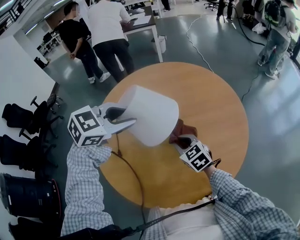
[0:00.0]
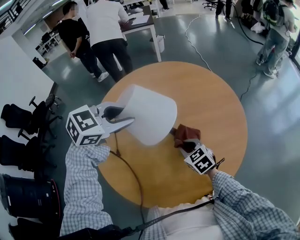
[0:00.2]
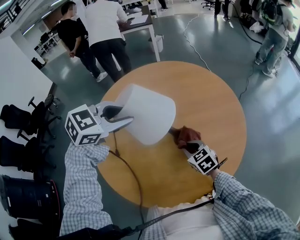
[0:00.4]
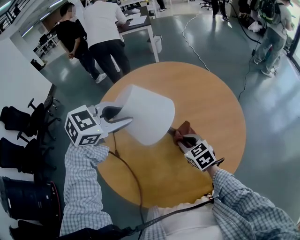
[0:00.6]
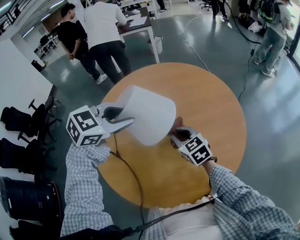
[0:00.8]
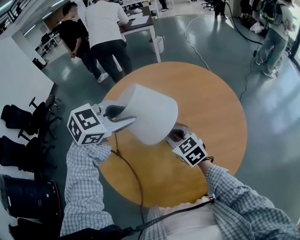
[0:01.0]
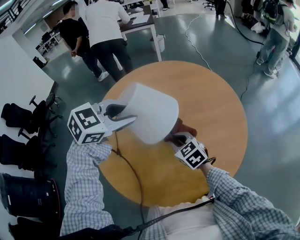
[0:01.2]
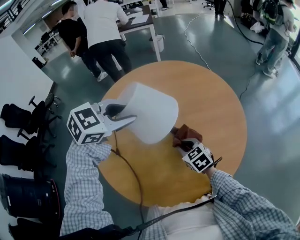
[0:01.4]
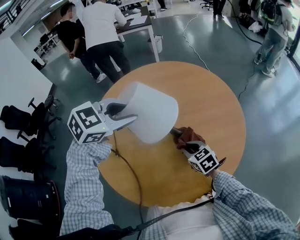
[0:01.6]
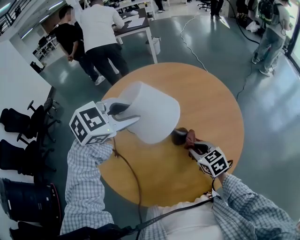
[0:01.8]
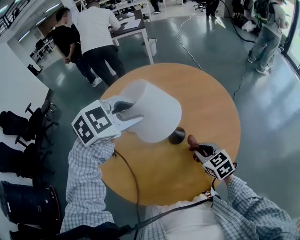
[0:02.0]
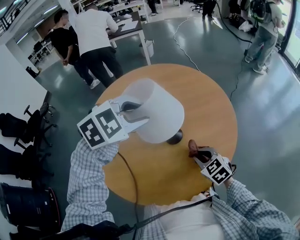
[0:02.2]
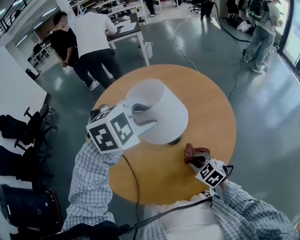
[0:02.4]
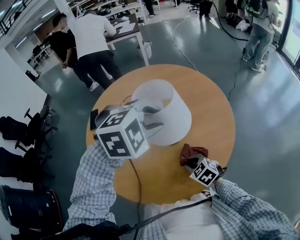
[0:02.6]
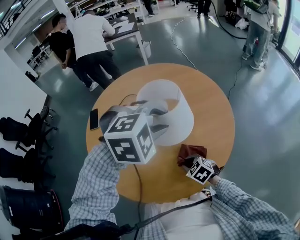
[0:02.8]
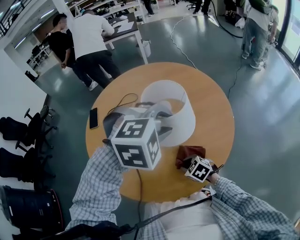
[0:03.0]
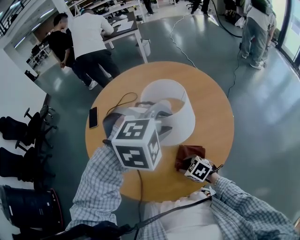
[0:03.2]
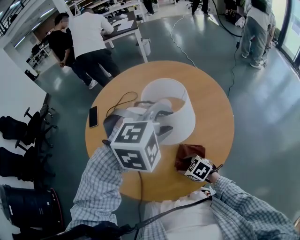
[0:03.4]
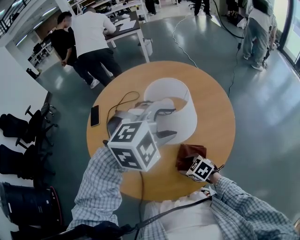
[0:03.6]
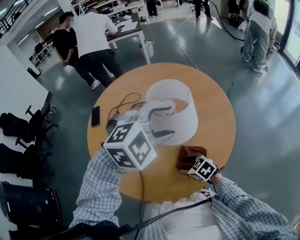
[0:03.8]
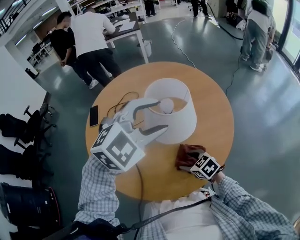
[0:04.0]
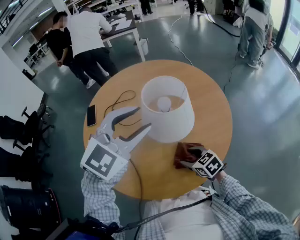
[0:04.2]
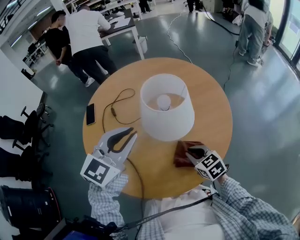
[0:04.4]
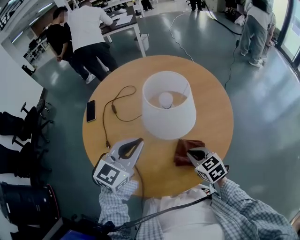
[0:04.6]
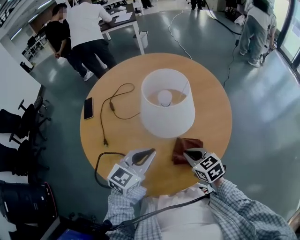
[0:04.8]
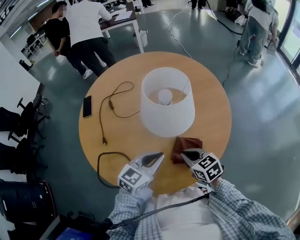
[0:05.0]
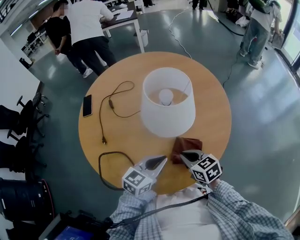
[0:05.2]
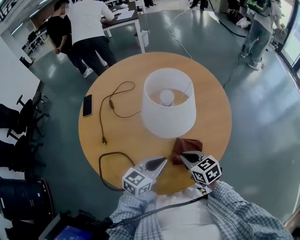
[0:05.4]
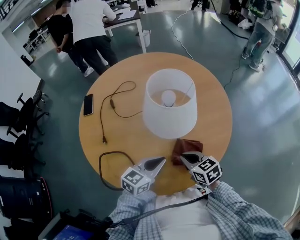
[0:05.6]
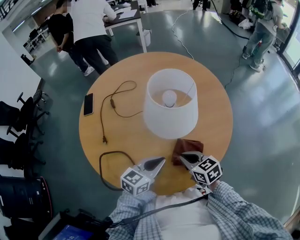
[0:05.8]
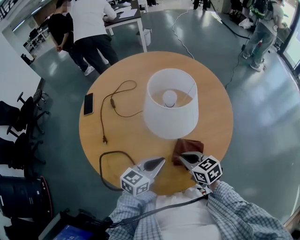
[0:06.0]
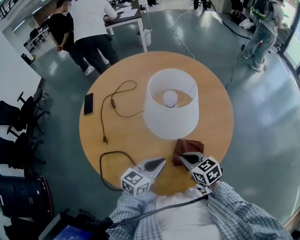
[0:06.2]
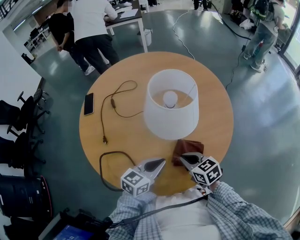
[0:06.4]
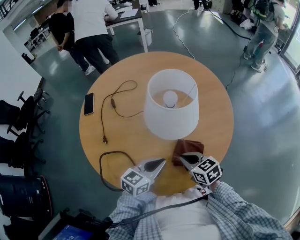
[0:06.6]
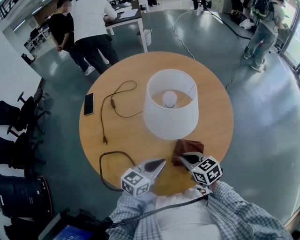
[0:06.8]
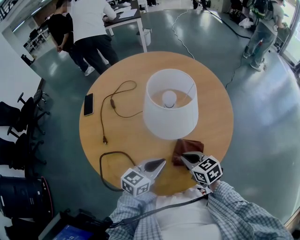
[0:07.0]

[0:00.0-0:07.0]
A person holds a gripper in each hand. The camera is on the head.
0:00.0 to 0:01.4: The right gripper goes up and down, about 10 cm each way, reversing 2 times.
0:01.4 to 0:02.8: The left gripper is displaced to the right by some 15 cm, and rotates roughly 40 degrees. Meanwhile the right gripper heads backward and to the right, covering about 15 cm.
0:02.8 to 0:04.2: The left gripper shifts approximately 10 cm upward and to the left, and points its fingers roughly 40 degrees further upward, while the right gripper opens up.
0:04.2 to 0:05.6: The left gripper moves downward, some 25 cm, rolls counterclockwise, seen from behind, by approximately 50 degrees, and closes its fingers. The right gripper closes its fingers.
0:05.6 to 0:07.0: Neither gripper changes place.

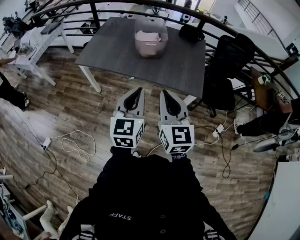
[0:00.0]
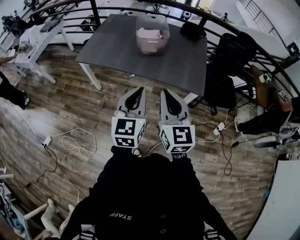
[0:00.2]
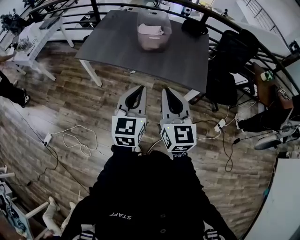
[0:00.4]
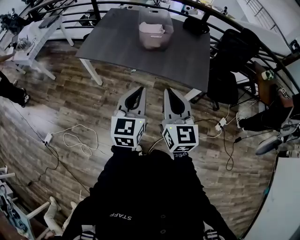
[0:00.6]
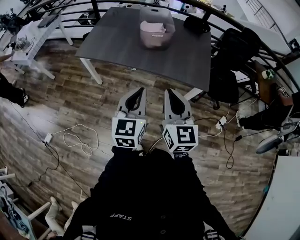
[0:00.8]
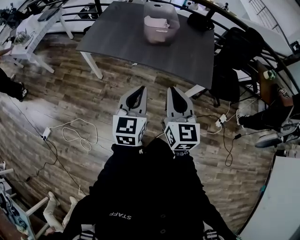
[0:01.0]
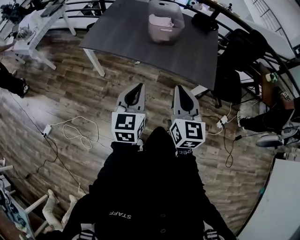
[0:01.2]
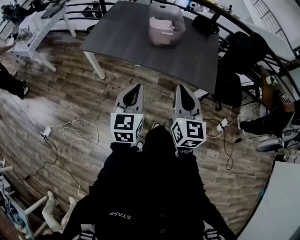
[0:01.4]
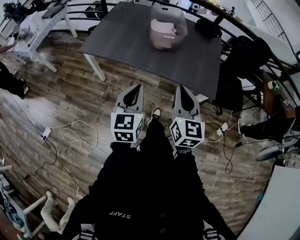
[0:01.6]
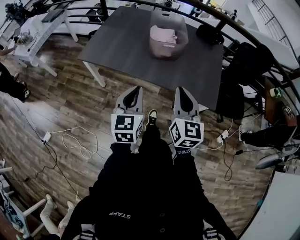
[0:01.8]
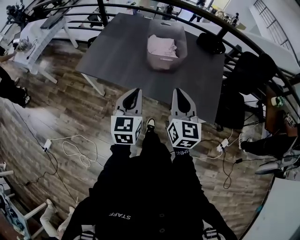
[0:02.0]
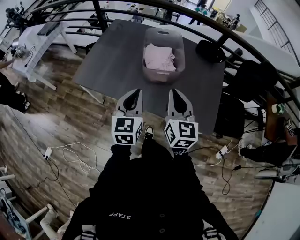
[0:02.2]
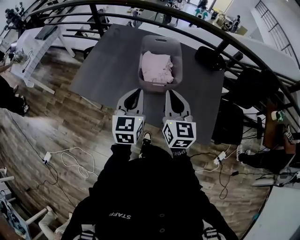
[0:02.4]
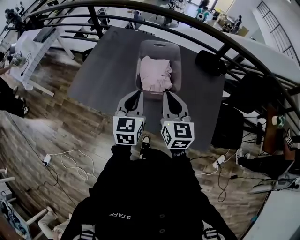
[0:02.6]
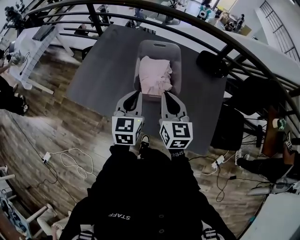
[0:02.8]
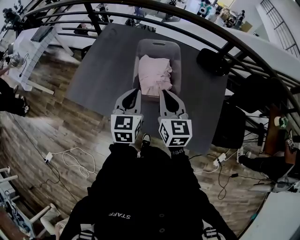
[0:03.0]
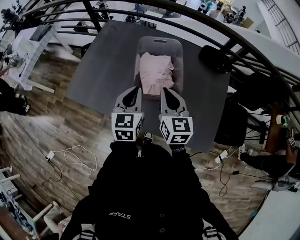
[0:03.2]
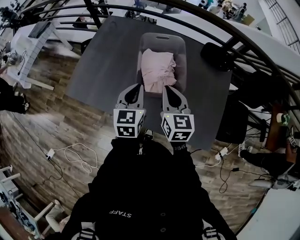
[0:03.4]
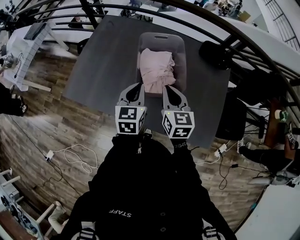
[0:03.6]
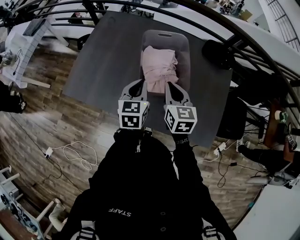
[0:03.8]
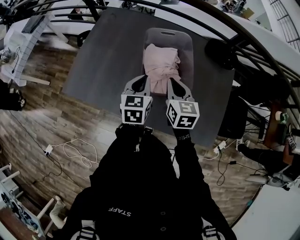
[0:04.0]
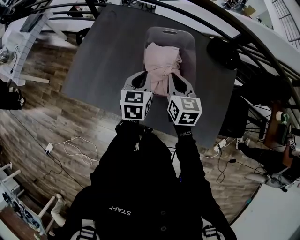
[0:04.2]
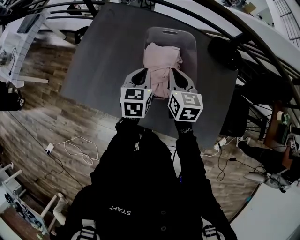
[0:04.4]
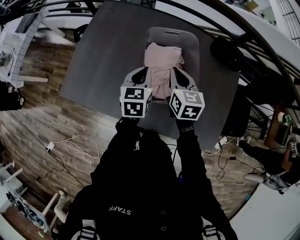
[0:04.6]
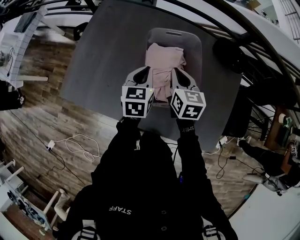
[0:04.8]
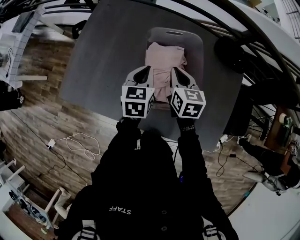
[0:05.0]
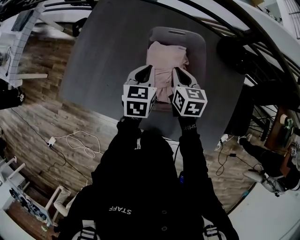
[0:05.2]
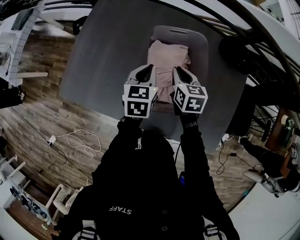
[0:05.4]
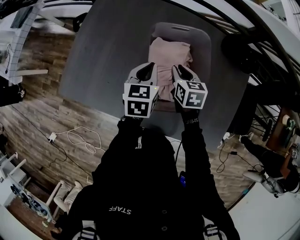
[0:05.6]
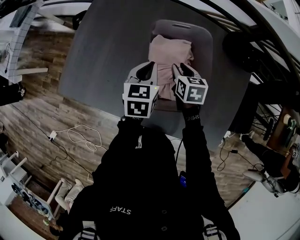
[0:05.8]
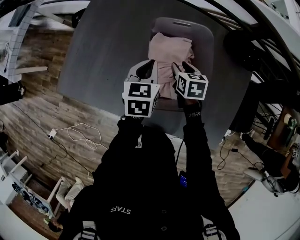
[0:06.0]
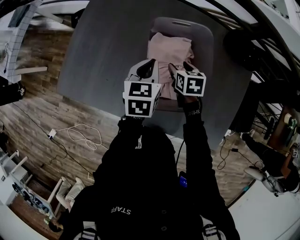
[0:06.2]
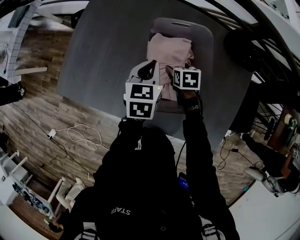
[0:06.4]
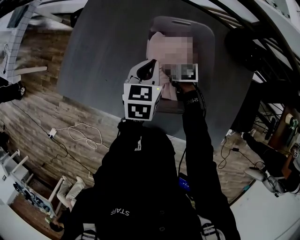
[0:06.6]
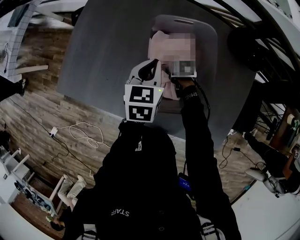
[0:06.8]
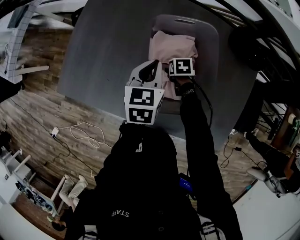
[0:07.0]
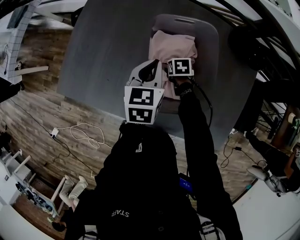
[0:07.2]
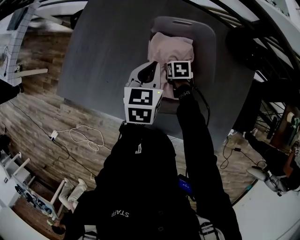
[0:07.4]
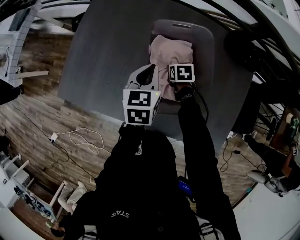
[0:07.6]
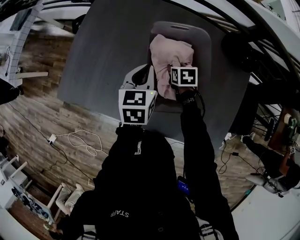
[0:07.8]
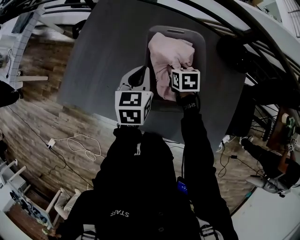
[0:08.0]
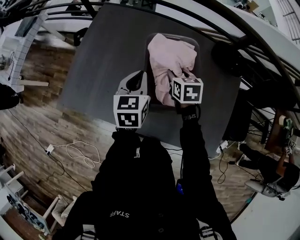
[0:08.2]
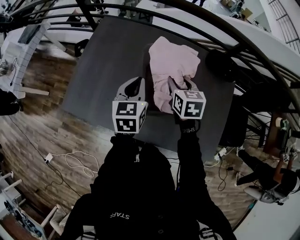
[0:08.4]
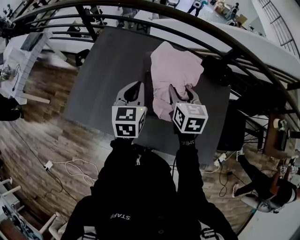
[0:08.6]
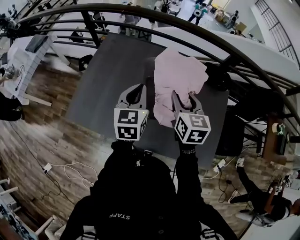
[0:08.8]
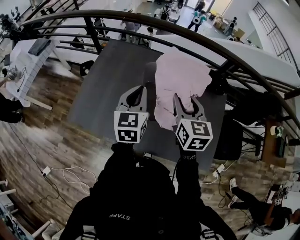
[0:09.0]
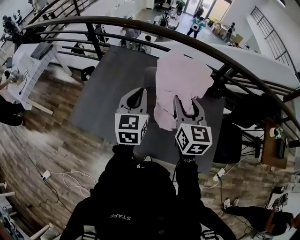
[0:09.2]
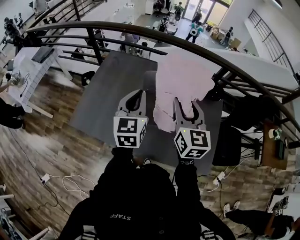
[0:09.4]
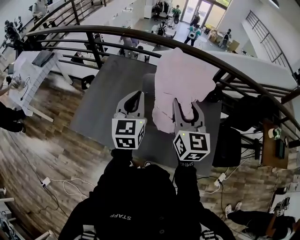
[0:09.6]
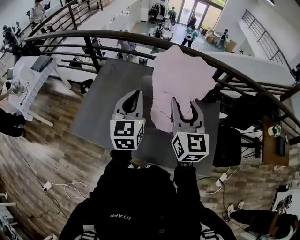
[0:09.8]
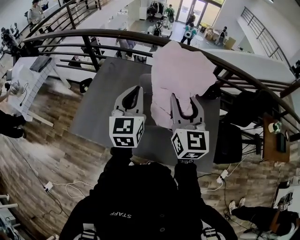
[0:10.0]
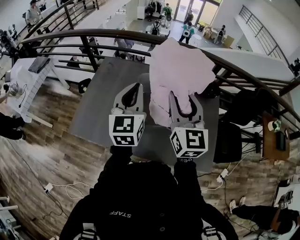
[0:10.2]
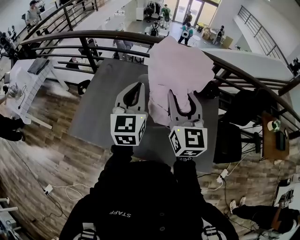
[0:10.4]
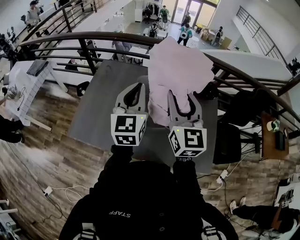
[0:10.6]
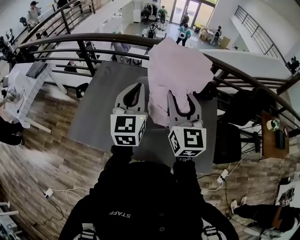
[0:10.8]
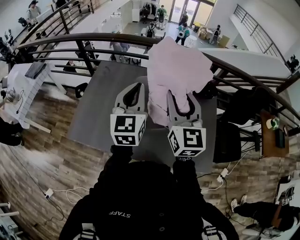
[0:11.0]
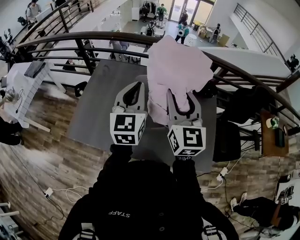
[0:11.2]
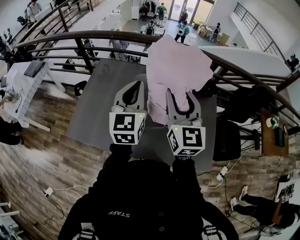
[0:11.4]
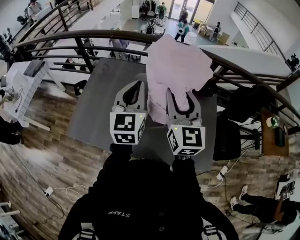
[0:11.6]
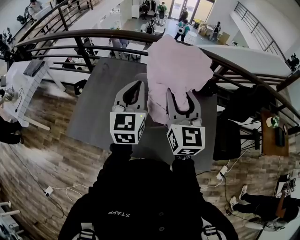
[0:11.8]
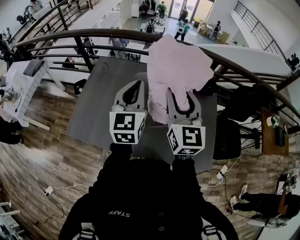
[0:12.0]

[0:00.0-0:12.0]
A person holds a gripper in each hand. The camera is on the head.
0:00.0 to 0:01.6: The right gripper travels forward and downward by approximately 10 cm, while the left gripper moves to the left, downward and forward, some 15 cm.
0:01.6 to 0:03.0: The two grippers travel together, forward, about 40 cm.
0:03.0 to 0:04.4: The grippers both shift forward and downward by roughly 15 cm.
0:04.4 to 0:06.0: The right gripper goes roughly 20 cm downward and forward, swivels some 30 degrees, and opens up, while the left gripper goes approximately 10 cm forward and downward.
0:06.0 to 0:07.6: The right gripper shifts some 10 cm downward, and opens, then closes again.
0:07.6 to 0:09.0: The right gripper goes about 40 cm upward, and tips its fingers upward by roughly 50 degrees, while the left gripper goes some 20 cm upward, and rotates roughly 20 degrees.
0:09.0 to 0:10.4: Both grippers move upward, about 10 cm. The right gripper swivels approximately 20 degrees.
0:10.4 to 0:12.0: The grippers move only a little.

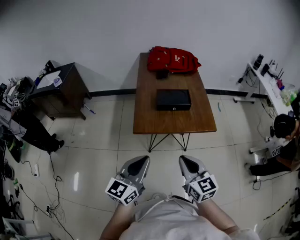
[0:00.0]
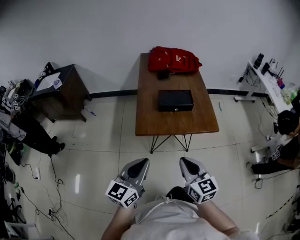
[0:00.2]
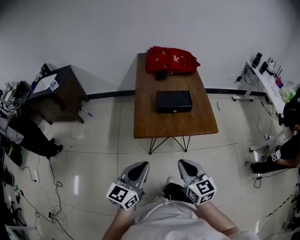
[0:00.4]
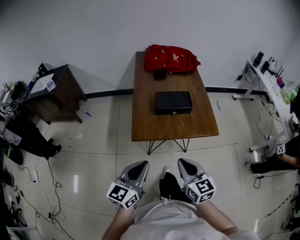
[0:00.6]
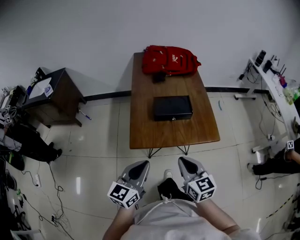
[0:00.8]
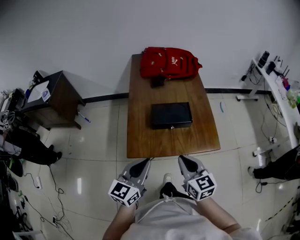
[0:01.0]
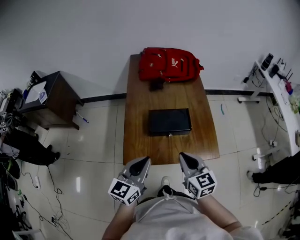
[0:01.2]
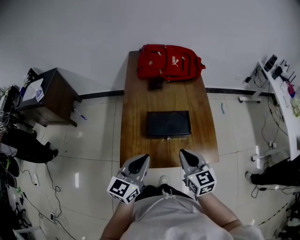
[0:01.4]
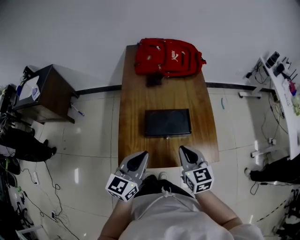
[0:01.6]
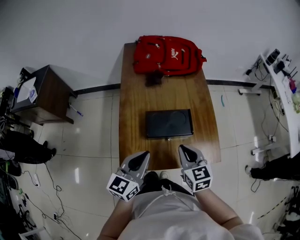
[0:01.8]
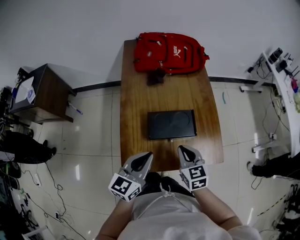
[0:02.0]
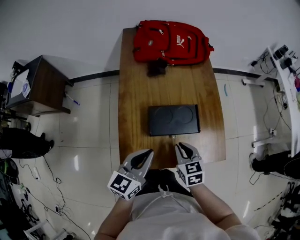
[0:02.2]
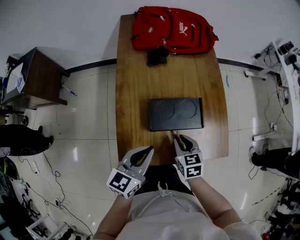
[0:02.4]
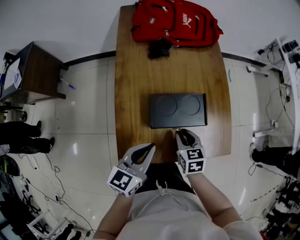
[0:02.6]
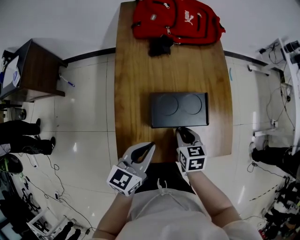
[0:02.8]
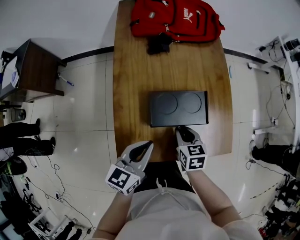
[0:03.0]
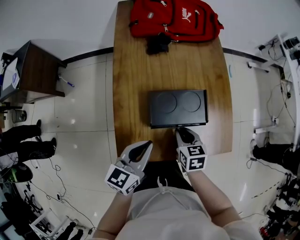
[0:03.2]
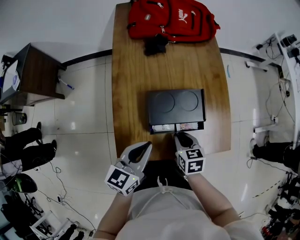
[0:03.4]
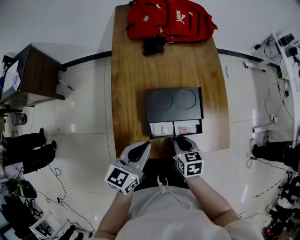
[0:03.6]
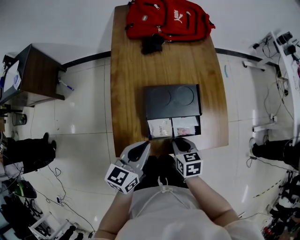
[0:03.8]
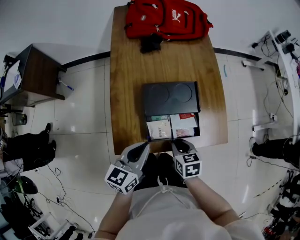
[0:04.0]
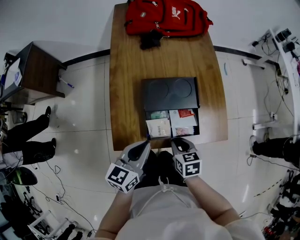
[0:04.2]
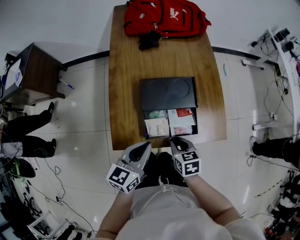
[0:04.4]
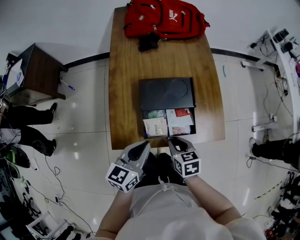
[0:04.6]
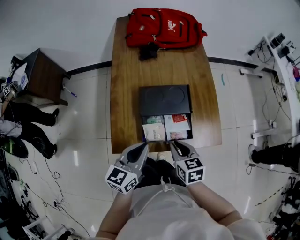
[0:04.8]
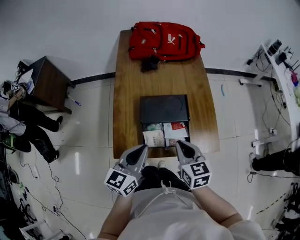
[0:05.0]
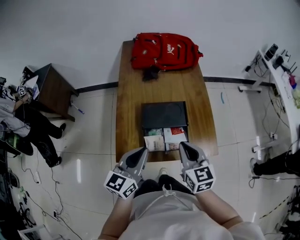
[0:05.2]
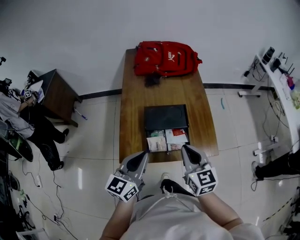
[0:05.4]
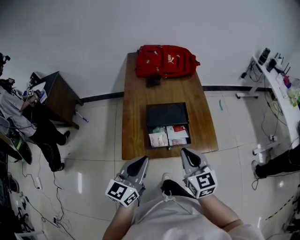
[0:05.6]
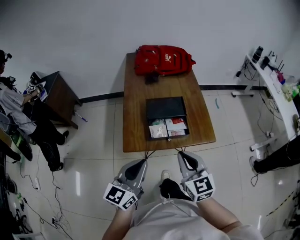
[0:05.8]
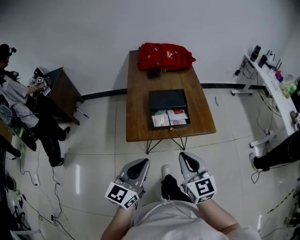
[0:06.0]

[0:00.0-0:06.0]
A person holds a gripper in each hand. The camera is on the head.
0:00.0 to 0:01.6: The two grippers go approximately 30 cm forward.
0:01.6 to 0:03.0: The right gripper moves downward, approximately 15 cm, and turns by about 30 degrees. The left gripper shifts roughly 10 cm downward.
0:03.0 to 0:04.4: The right gripper shifts roughly 10 cm backward. The left gripper travels backward by approximately 5 cm.
0:04.4 to 0:06.0: The left gripper shifts roughly 25 cm backward and upward, and rotates about 20 degrees. Meanwhile the right gripper shifts some 30 cm upward and backward, and tilts its fingers roughly 40 degrees upward.
